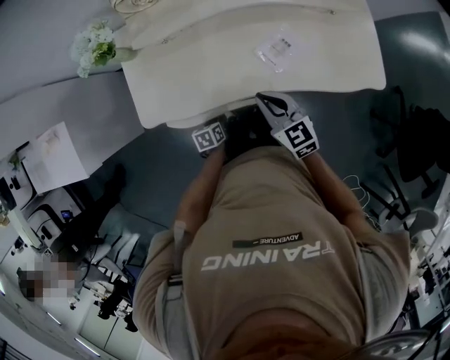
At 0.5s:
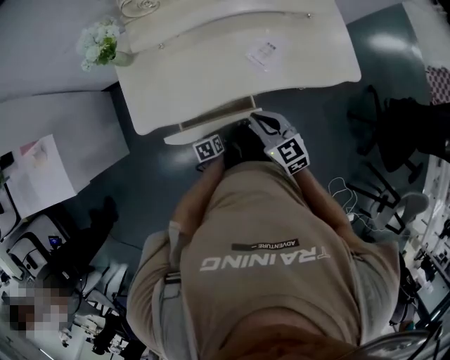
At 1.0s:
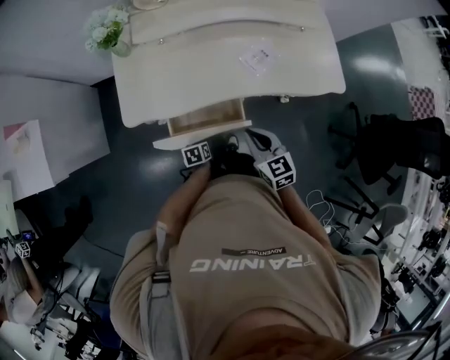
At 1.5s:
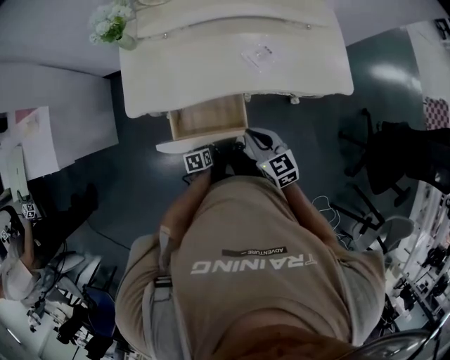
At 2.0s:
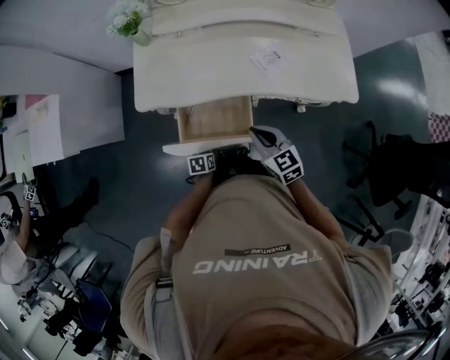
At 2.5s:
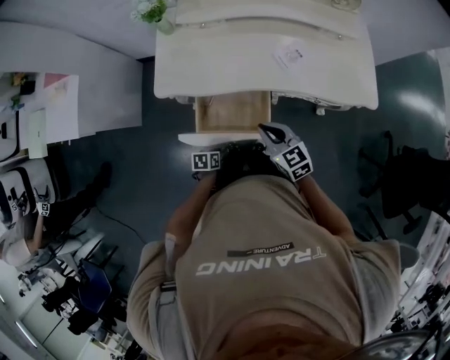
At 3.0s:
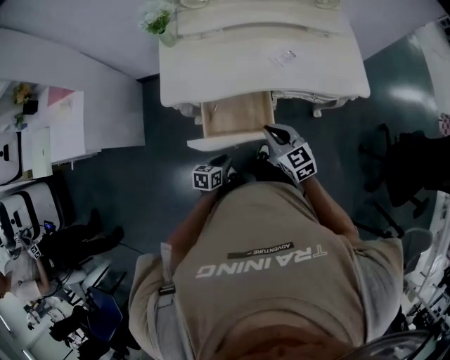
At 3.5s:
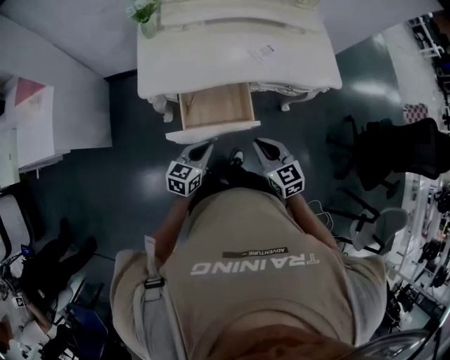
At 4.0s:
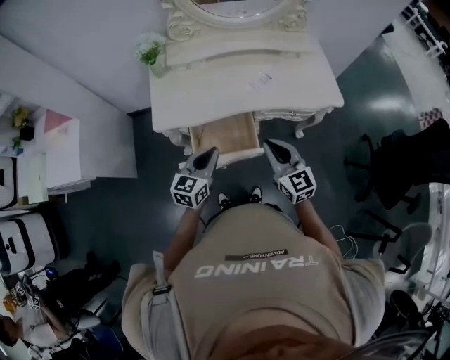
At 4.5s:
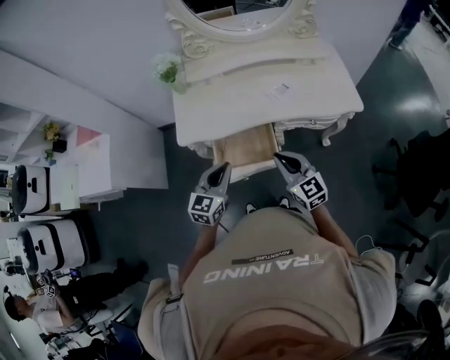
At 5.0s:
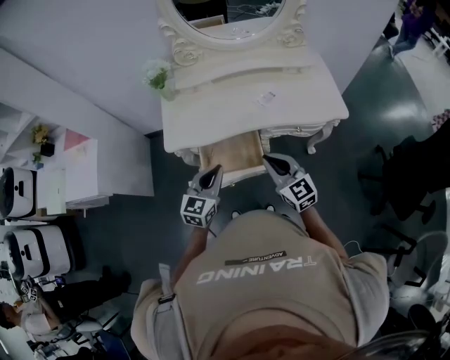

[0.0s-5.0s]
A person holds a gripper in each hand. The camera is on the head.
0.0s to 2.5s: The grippers both shift backward by some 20 cm.
2.5s to 5.0s: The right gripper is displaced upward and backward by about 15 cm, and rotates roughly 20 degrees. Meanwhile the left gripper shifts some 35 cm upward, tilts its fingers some 40 degrees upward, and closes.

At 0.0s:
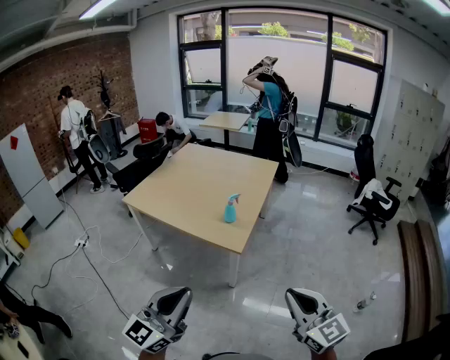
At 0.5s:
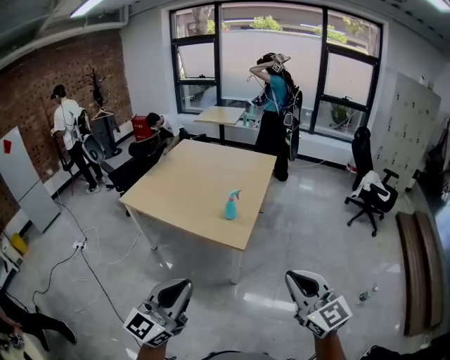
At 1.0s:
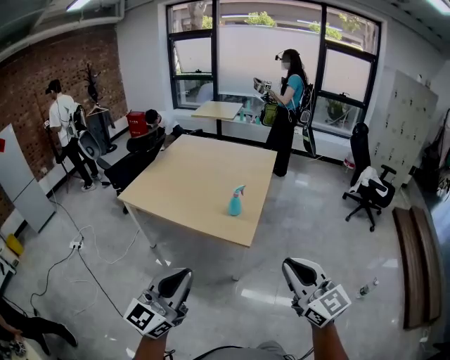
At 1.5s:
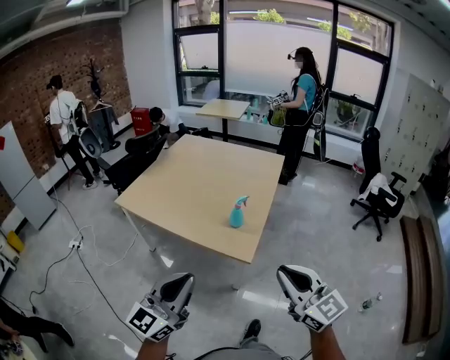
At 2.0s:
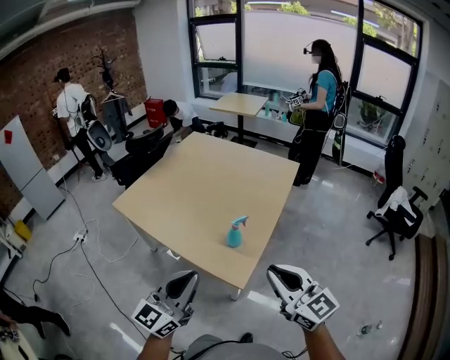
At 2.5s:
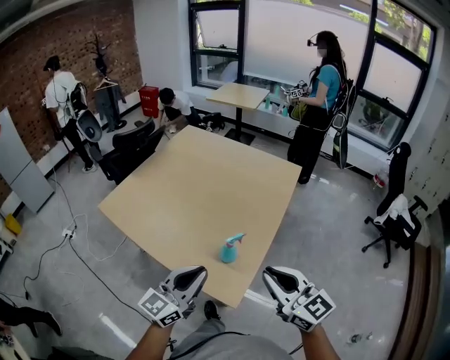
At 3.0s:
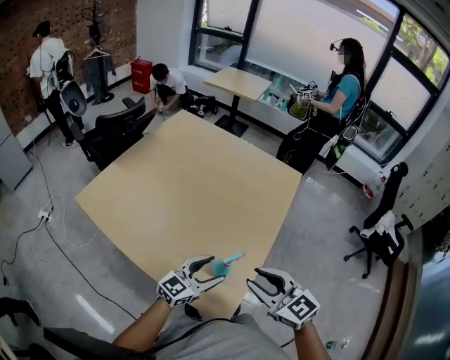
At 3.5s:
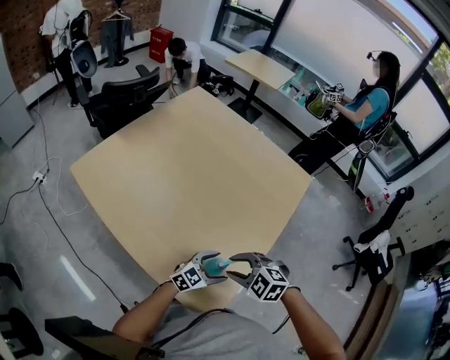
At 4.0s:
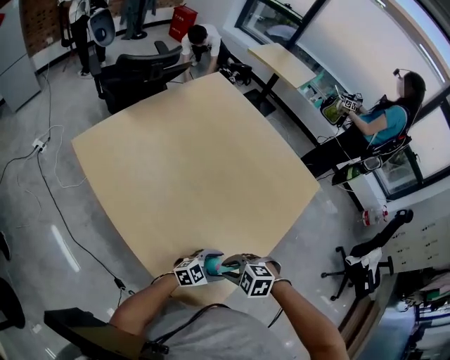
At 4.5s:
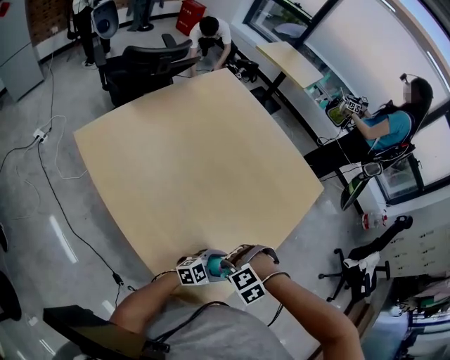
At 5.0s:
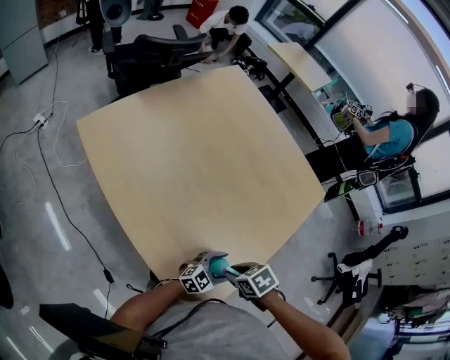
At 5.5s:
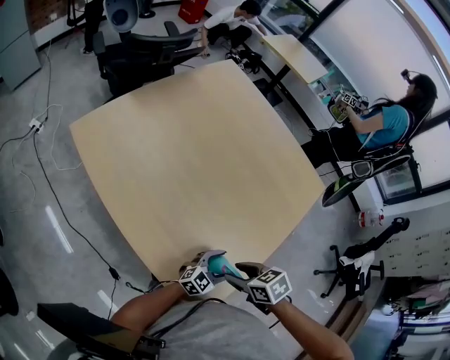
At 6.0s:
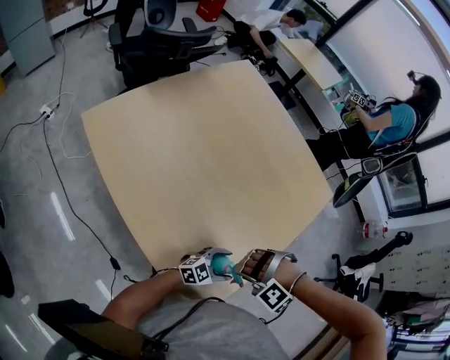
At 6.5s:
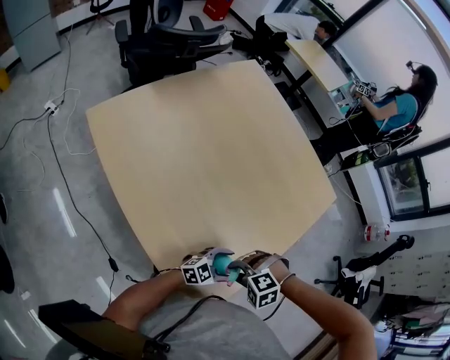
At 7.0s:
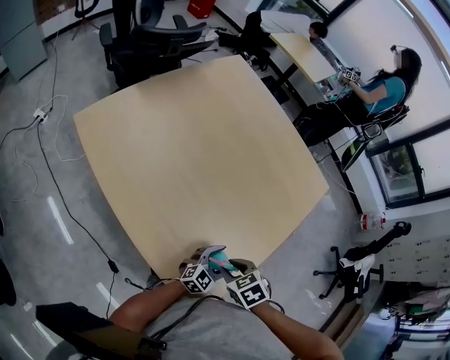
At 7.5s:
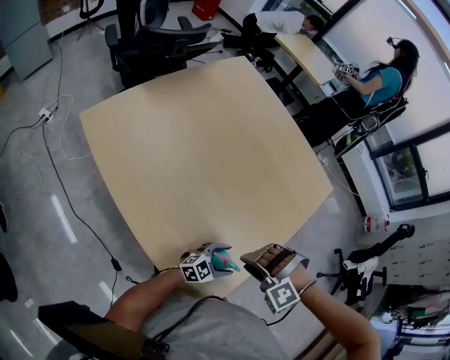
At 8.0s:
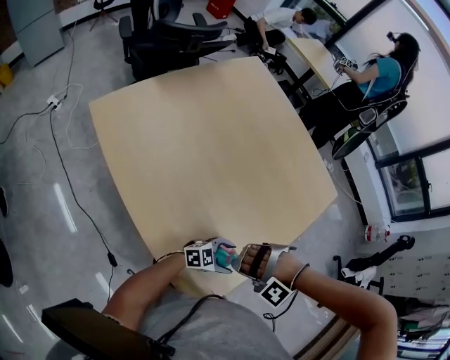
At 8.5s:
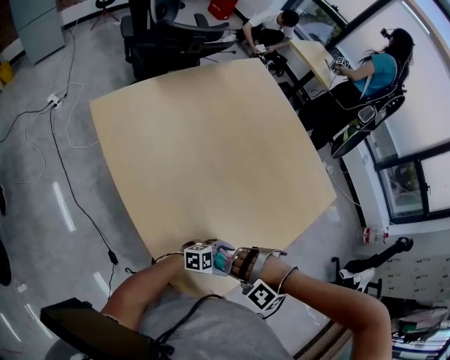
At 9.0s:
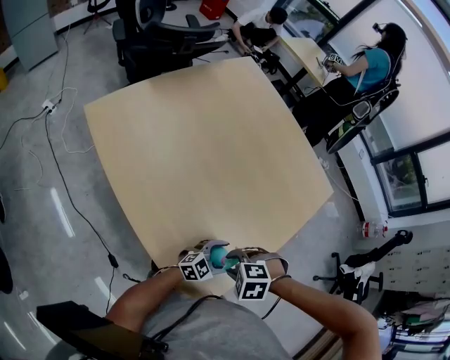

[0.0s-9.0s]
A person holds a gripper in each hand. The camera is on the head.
0.0s to 2.0s: Both grippers travel together forward, some 35 cm.
2.0s to 4.5s: The left gripper heads downward, covering approximately 40 cm, changes its angle by roughly 40 degrees, and opens its fingers, while the right gripper moves some 50 cm, angles its fingers downward, by approximately 90 degrees, and opens.
4.5s to 7.0s: The left gripper turns by roughly 20 degrees. The right gripper rolls clockwise, seen from behind, by about 90 degrees.
7.0s to 9.0s: The right gripper rolls counterclockwise, seen from behind, by some 60 degrees.

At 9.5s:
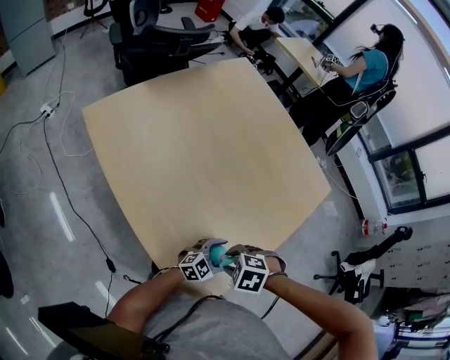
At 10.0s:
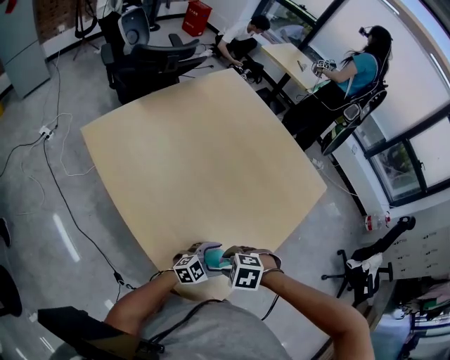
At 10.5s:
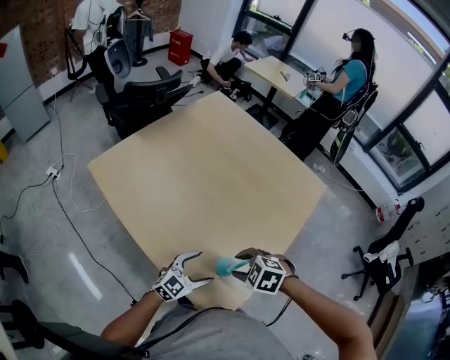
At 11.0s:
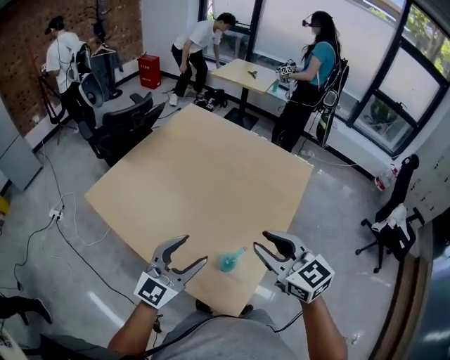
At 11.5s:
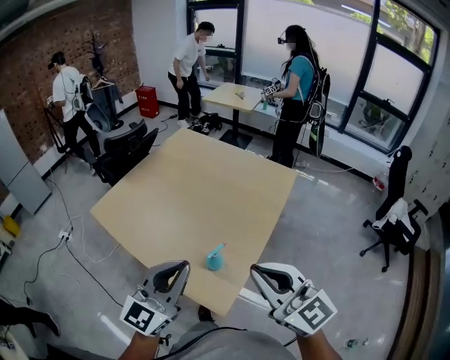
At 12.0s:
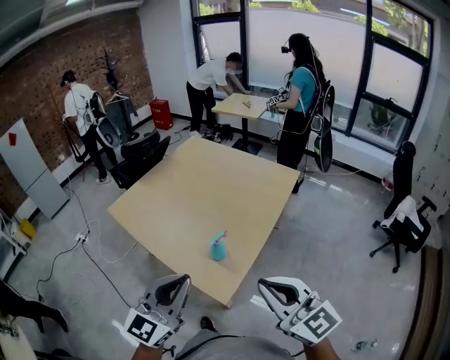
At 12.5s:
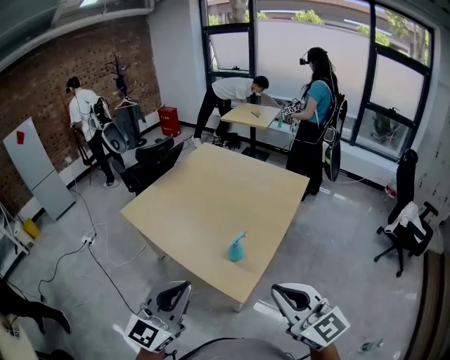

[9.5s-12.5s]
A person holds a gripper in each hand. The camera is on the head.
9.5s to 11.0s: The two grippers go roughly 30 cm upward. The left gripper turns by roughly 30 degrees. The right gripper angles its fingers upward, by some 60 degrees.
11.0s to 12.5s: Both grippers travel together backward, about 35 cm. The right gripper closes its fingers; the left gripper closes up.

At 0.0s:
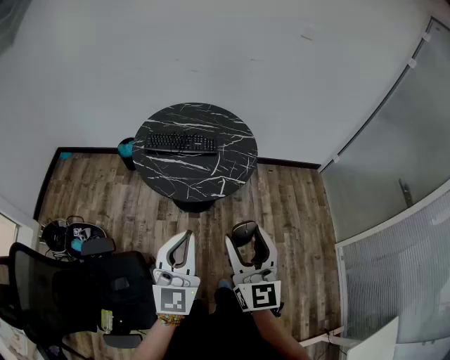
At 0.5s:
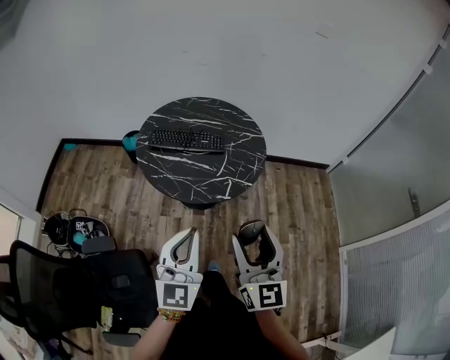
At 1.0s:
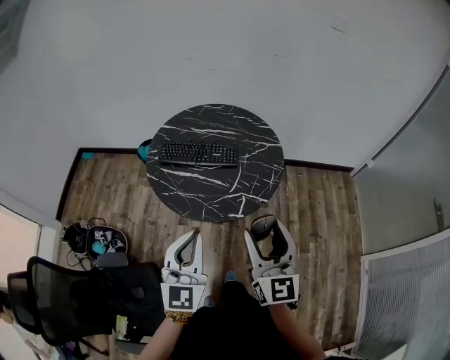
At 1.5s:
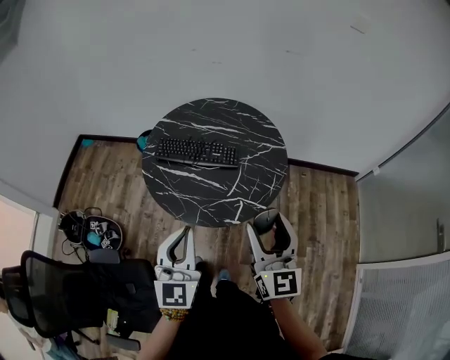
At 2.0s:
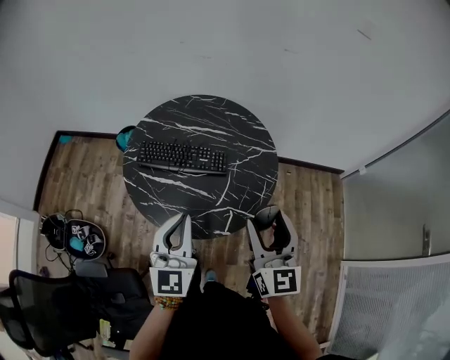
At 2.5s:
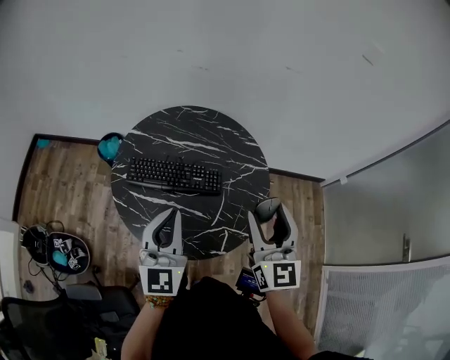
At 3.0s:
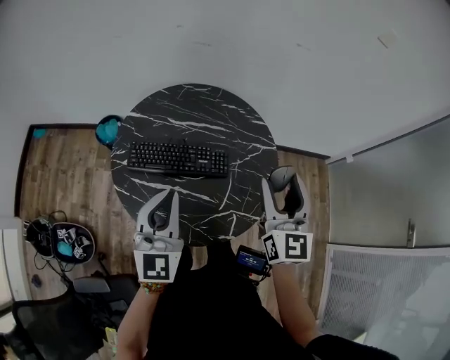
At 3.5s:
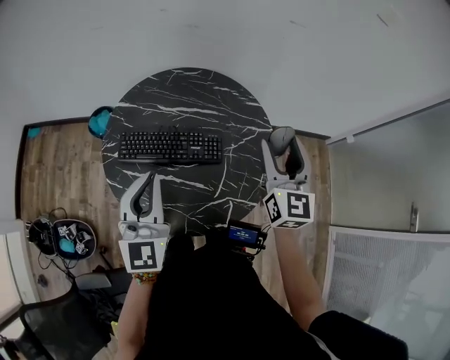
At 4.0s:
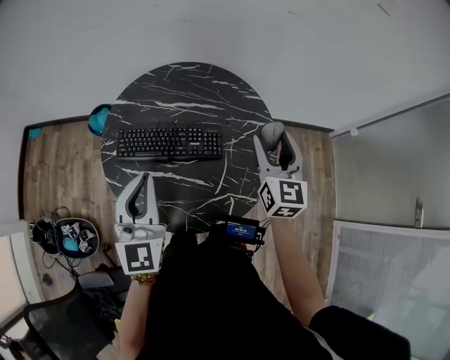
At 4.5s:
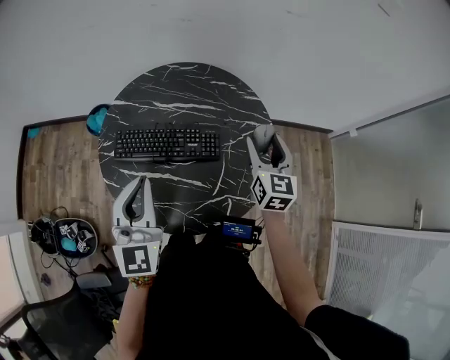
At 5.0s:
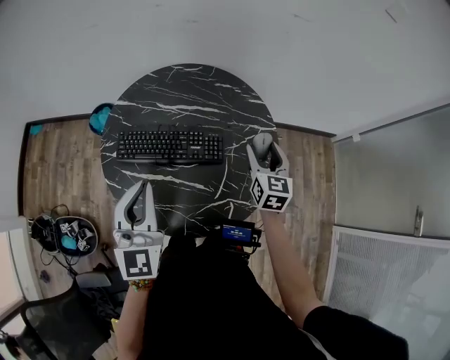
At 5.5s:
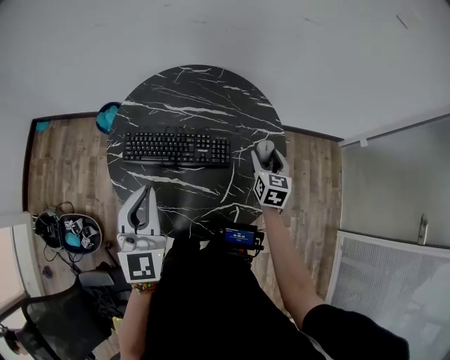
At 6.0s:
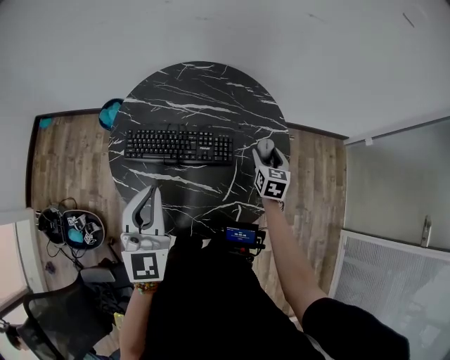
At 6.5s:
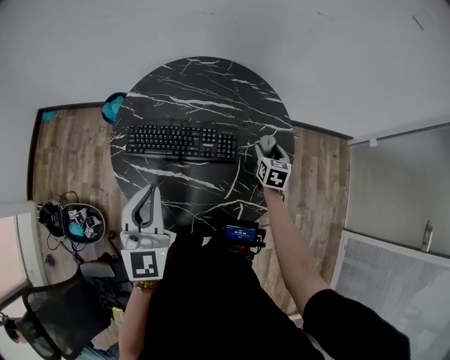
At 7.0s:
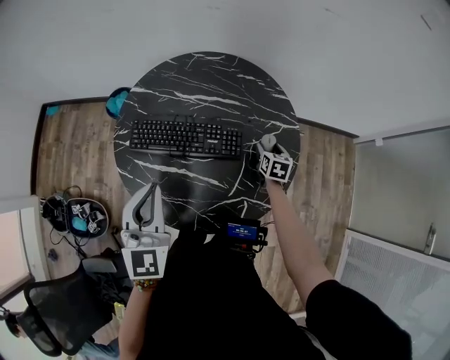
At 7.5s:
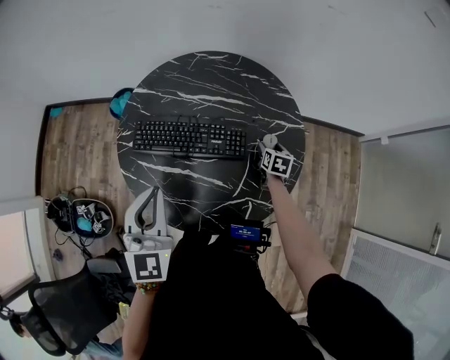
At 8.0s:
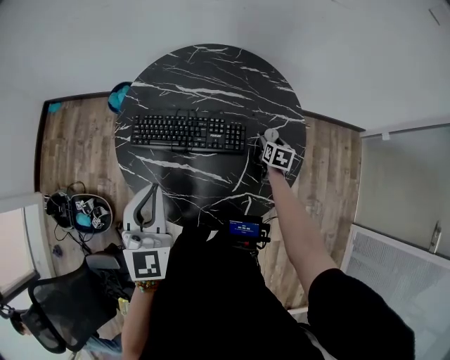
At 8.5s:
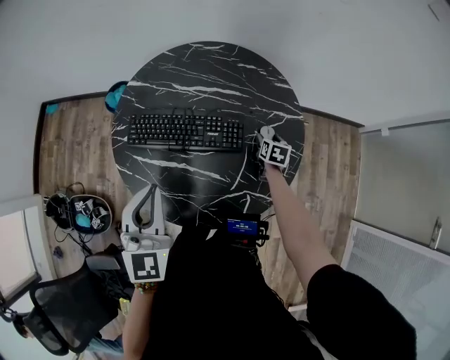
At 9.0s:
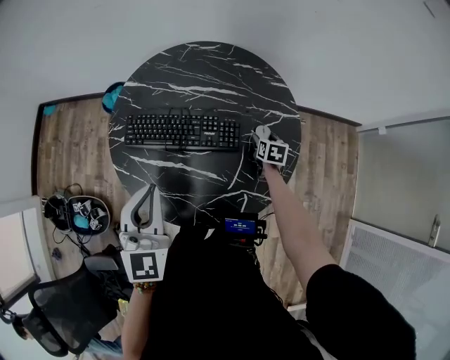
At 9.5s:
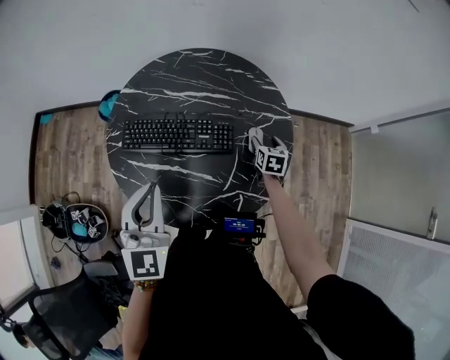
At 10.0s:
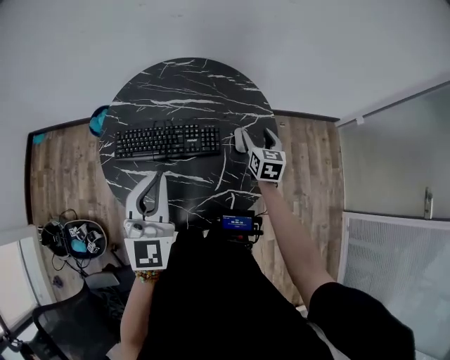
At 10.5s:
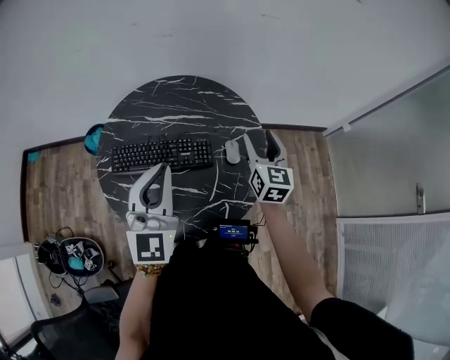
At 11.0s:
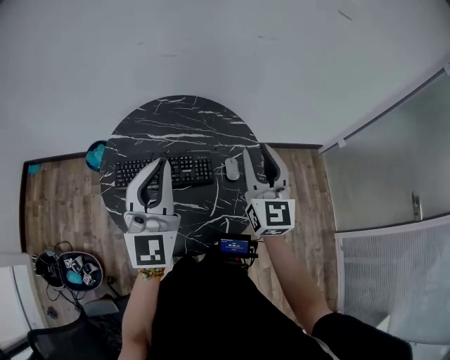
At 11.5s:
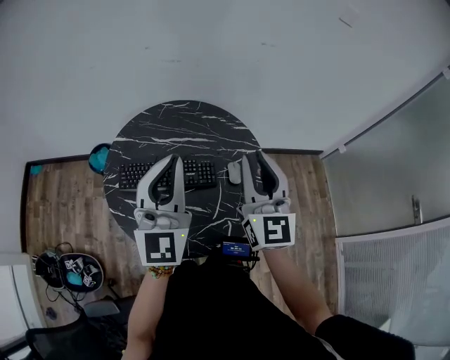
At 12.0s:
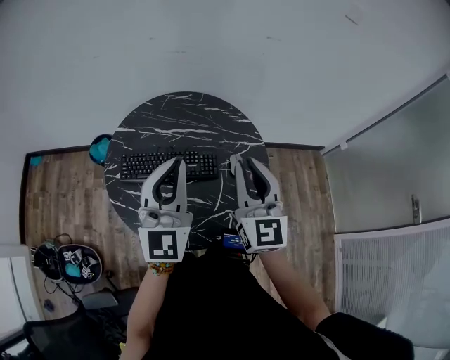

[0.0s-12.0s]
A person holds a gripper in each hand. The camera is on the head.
0.0s to 2.0s: The grippers both shift forward by approximately 35 cm.
2.0s to 4.0s: The right gripper travels forward by about 25 cm. The left gripper moves forward and to the left, about 20 cm.
4.0s to 6.0s: The right gripper goes some 25 cm downward, and rotates about 30 degrees.
6.0s to 8.0s: The right gripper travels downward by approximately 15 cm.
8.0s to 10.0s: The right gripper shifts about 15 cm upward, and changes its angle by some 20 degrees, while the left gripper travels to the right by about 5 cm.
10.0s to 12.0s: The right gripper is displaced upward, backward and to the left by roughly 30 cm, points its fingers some 30 degrees further upward, and closes its fingers. The left gripper moves upward, roughly 10 cm.
